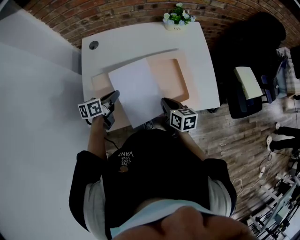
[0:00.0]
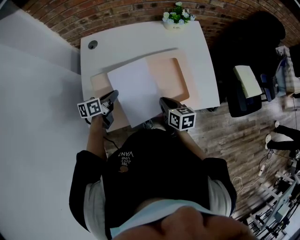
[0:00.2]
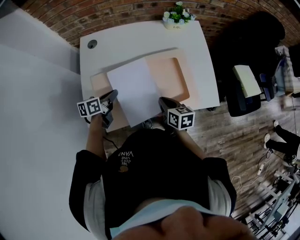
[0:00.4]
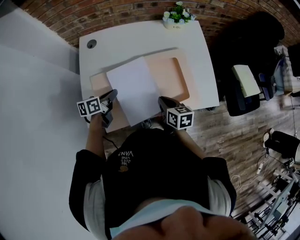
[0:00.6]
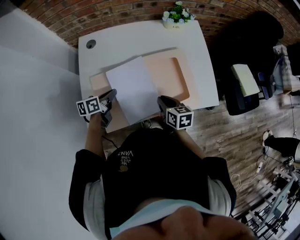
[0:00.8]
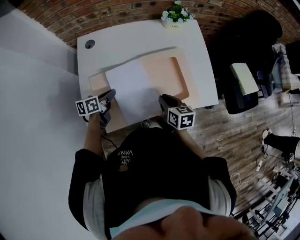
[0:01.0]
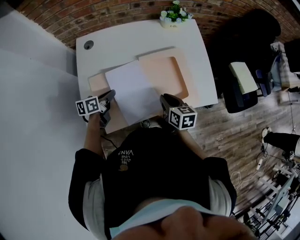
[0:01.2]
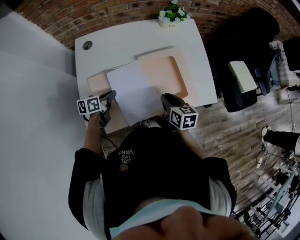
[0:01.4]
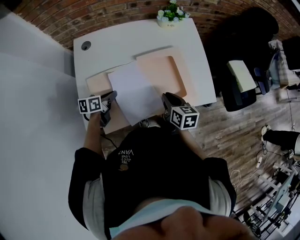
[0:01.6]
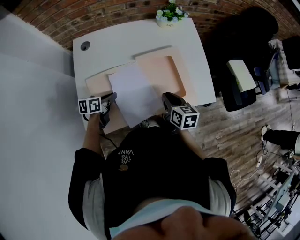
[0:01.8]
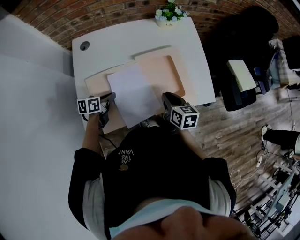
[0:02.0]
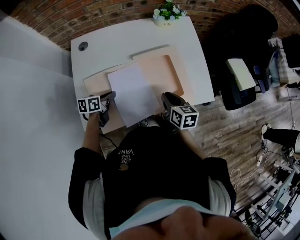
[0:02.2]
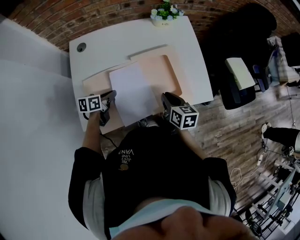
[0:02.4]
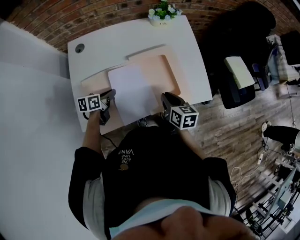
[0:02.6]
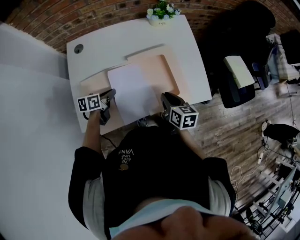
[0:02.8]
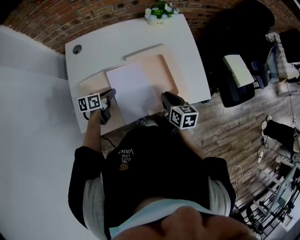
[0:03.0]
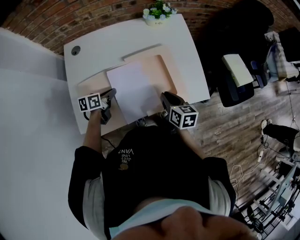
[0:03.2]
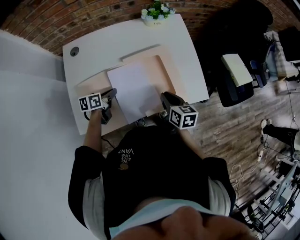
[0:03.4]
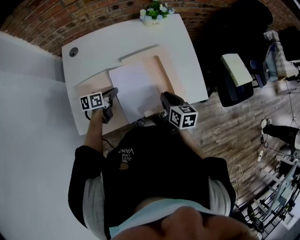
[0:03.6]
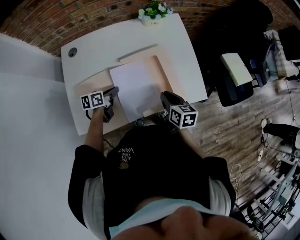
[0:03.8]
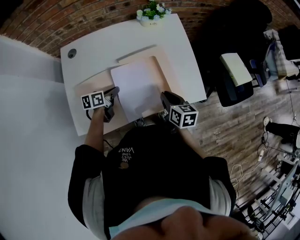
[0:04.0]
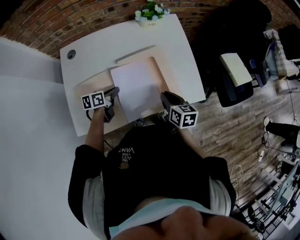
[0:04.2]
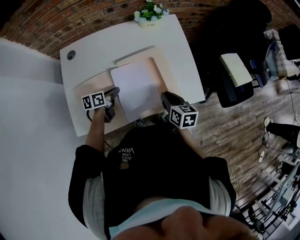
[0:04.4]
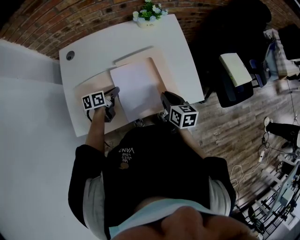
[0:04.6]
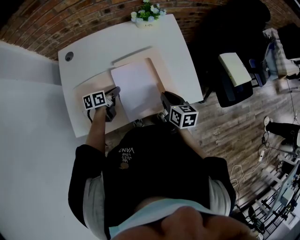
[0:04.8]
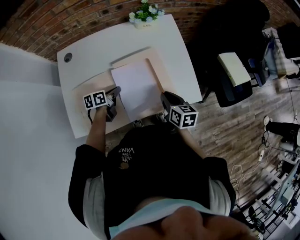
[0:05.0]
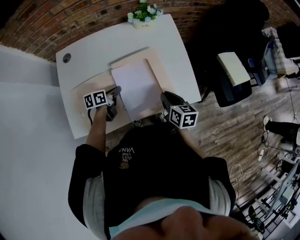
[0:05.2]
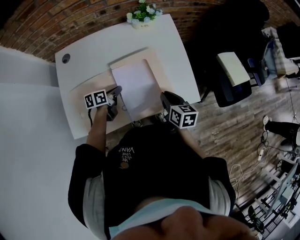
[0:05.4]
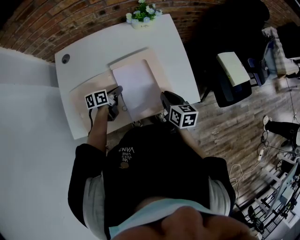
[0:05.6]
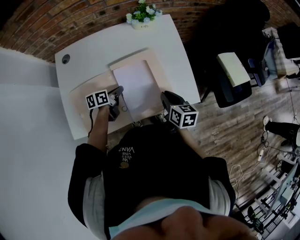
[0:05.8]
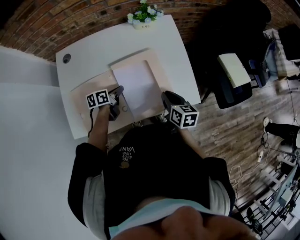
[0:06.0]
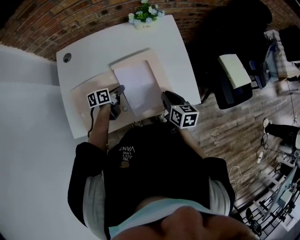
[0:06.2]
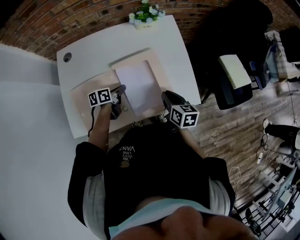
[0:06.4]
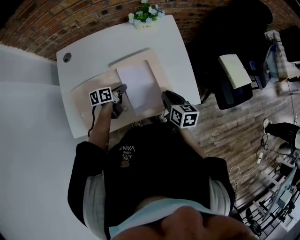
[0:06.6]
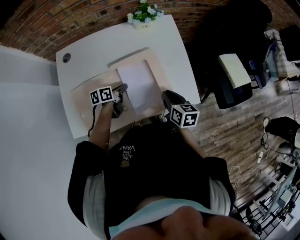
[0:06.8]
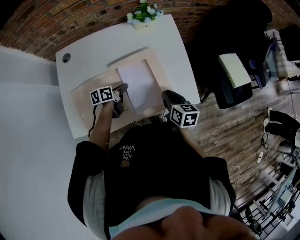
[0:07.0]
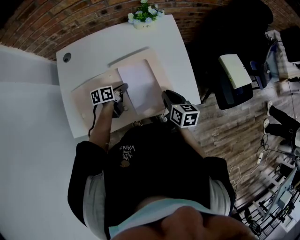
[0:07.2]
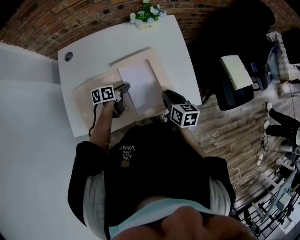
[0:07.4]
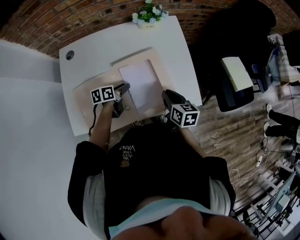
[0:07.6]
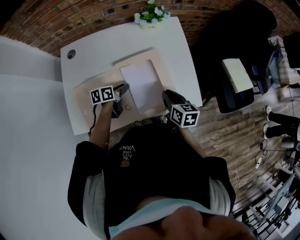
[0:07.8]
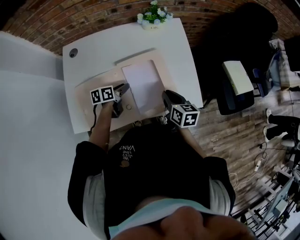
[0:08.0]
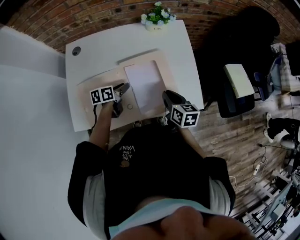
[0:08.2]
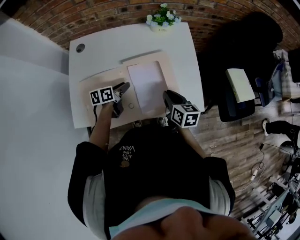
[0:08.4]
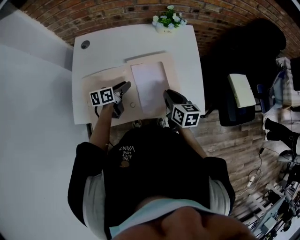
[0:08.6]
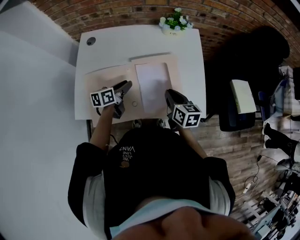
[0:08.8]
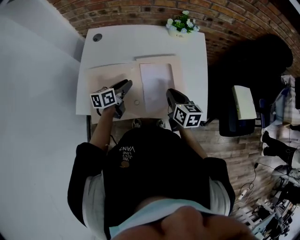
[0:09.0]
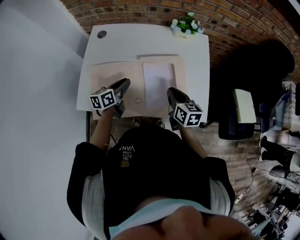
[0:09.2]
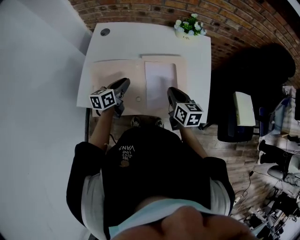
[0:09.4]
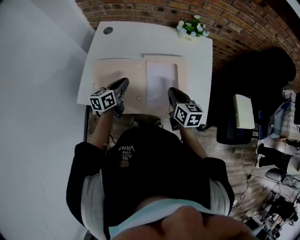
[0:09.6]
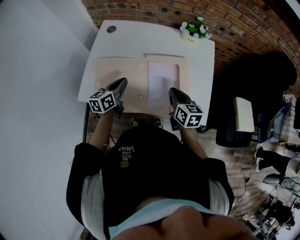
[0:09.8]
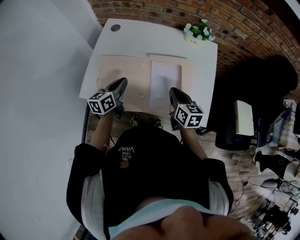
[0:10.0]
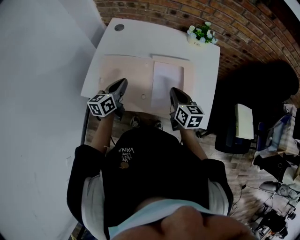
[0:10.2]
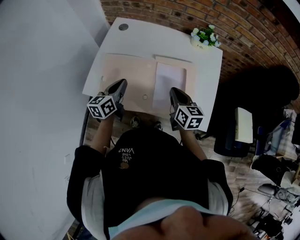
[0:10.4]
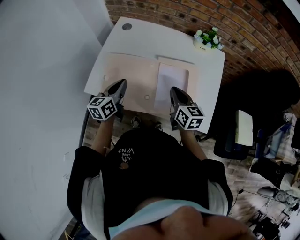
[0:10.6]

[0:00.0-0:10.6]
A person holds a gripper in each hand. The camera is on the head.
0:00.0 to 0:01.6: The left gripper moves downward, approximately 5 cm.
0:01.6 to 0:03.0: The grippers make only small movements.
0:03.0 to 0:04.6: The right gripper ends up roughly 5 cm from where it was; the left gripper shifts about 5 cm to the right.
0:04.6 to 0:06.0: The left gripper shifts by approximately 5 cm.
0:06.0 to 0:07.6: The left gripper opens.
0:07.6 to 0:09.0: The right gripper heads to the left, covering roughly 5 cm; the left gripper heads upward and to the left, covering some 10 cm, and changes its angle by approximately 20 degrees.
0:09.0 to 0:10.6: The right gripper goes about 5 cm to the left. The left gripper travels to the left, backward and upward by approximately 15 cm, rotates about 30 degrees, and closes its fingers.

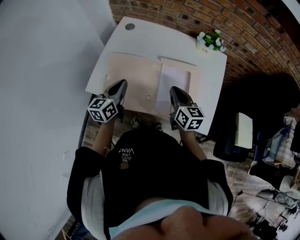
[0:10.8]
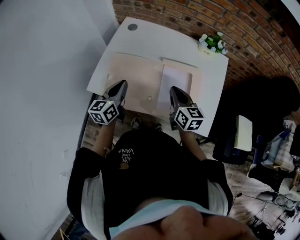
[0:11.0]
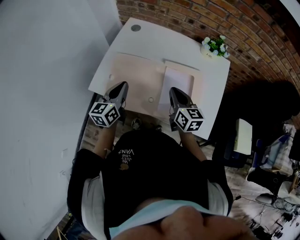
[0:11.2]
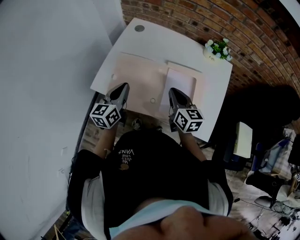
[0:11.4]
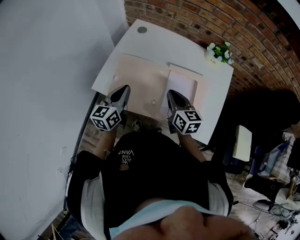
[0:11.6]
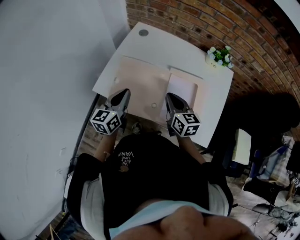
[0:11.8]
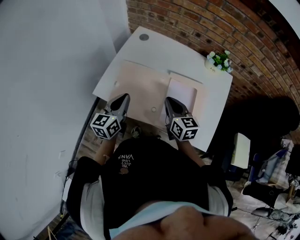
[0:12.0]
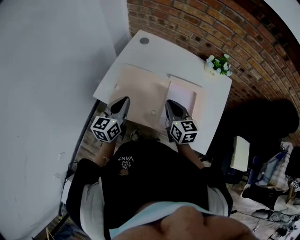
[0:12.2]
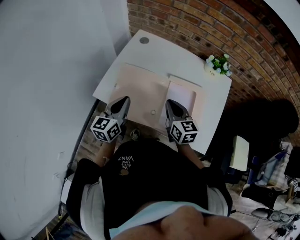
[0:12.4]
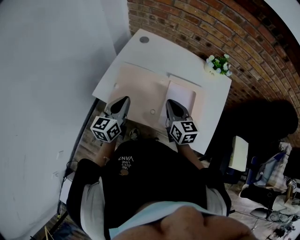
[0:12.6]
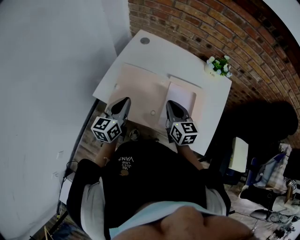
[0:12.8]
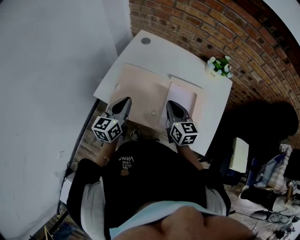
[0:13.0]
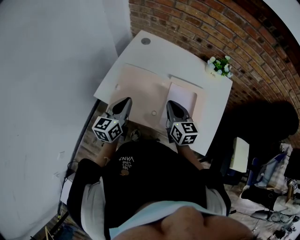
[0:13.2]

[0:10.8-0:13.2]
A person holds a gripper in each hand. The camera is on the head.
0:10.8 to 0:12.0: The right gripper shifts approximately 5 cm to the left.
0:12.0 to 0:13.2: The two grippers keep their place.

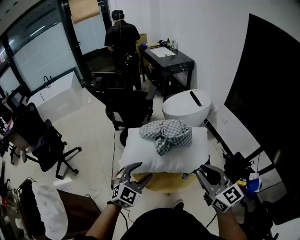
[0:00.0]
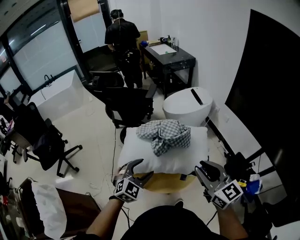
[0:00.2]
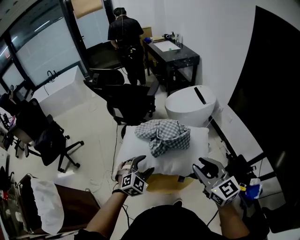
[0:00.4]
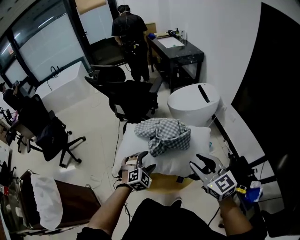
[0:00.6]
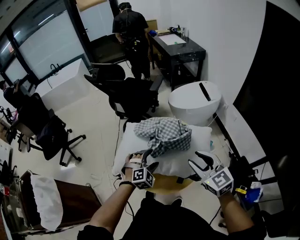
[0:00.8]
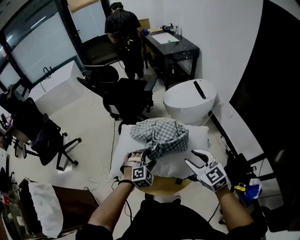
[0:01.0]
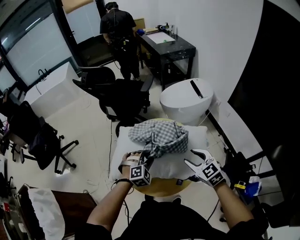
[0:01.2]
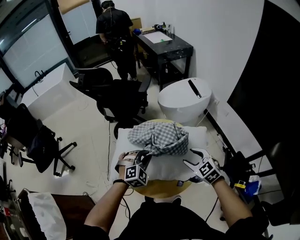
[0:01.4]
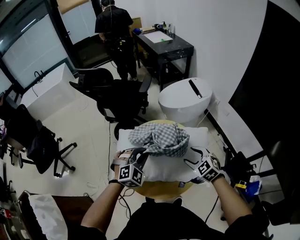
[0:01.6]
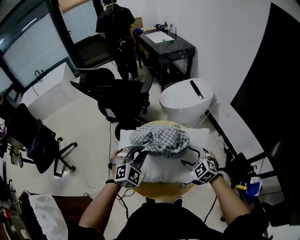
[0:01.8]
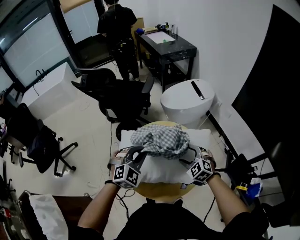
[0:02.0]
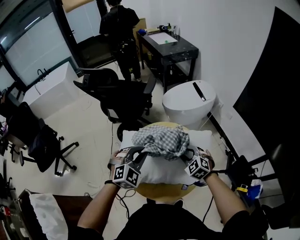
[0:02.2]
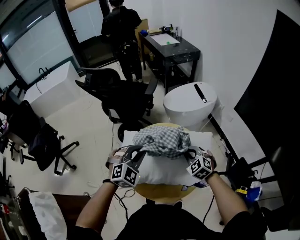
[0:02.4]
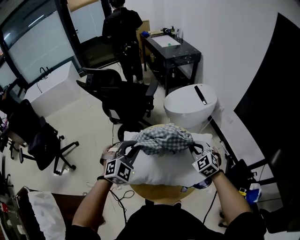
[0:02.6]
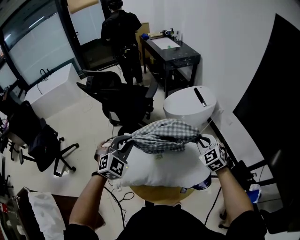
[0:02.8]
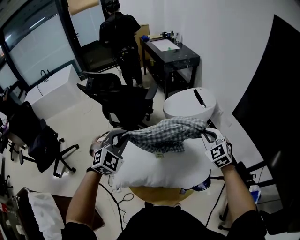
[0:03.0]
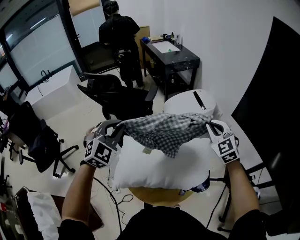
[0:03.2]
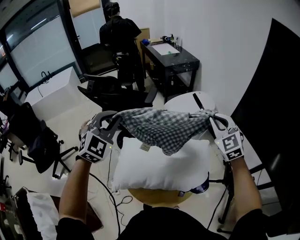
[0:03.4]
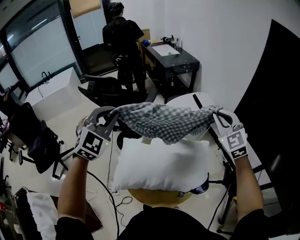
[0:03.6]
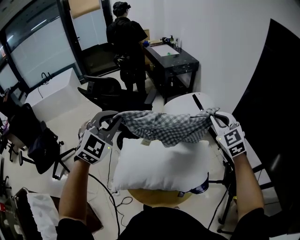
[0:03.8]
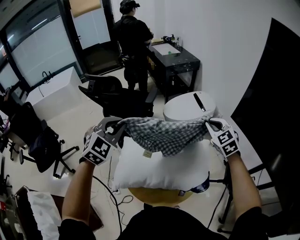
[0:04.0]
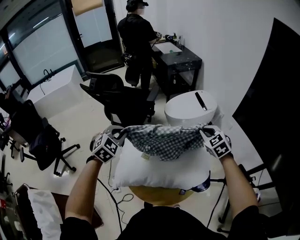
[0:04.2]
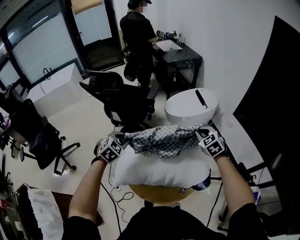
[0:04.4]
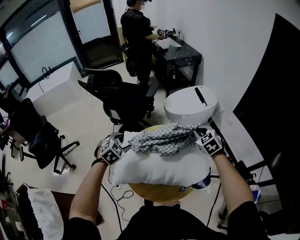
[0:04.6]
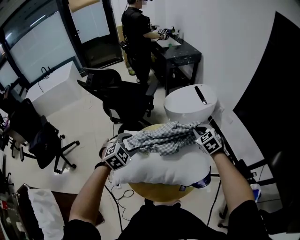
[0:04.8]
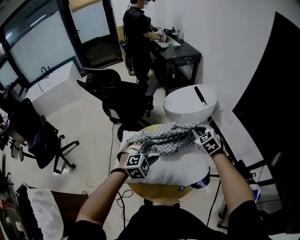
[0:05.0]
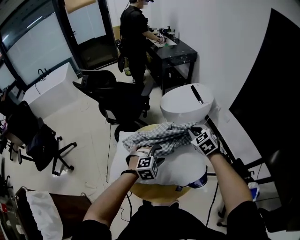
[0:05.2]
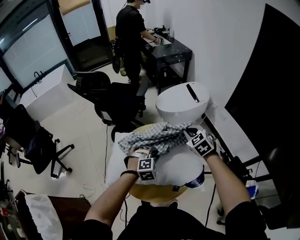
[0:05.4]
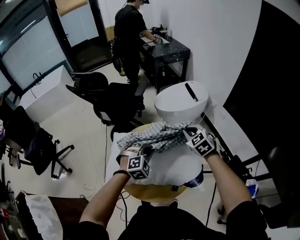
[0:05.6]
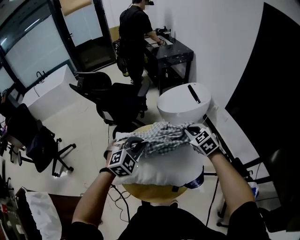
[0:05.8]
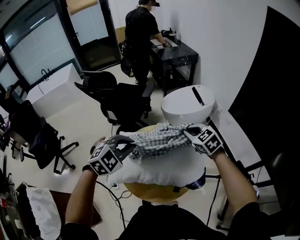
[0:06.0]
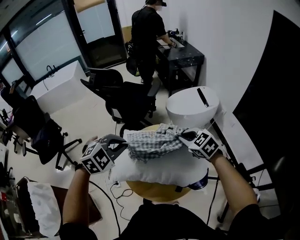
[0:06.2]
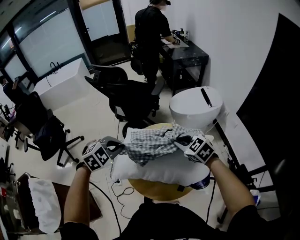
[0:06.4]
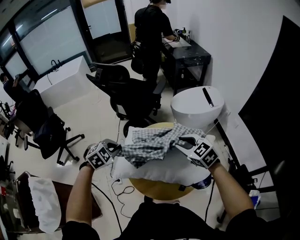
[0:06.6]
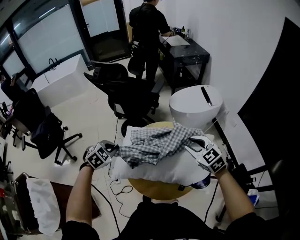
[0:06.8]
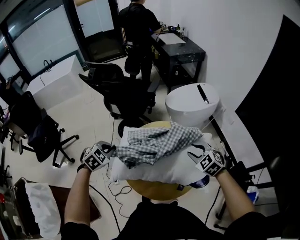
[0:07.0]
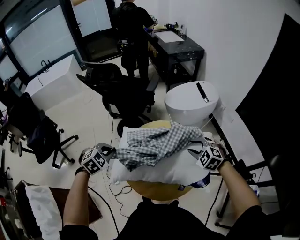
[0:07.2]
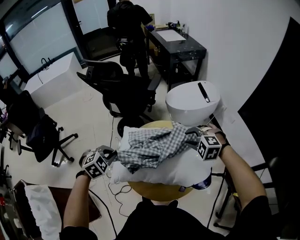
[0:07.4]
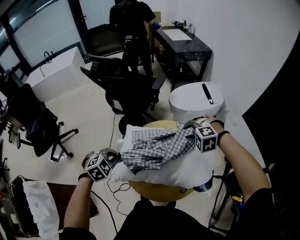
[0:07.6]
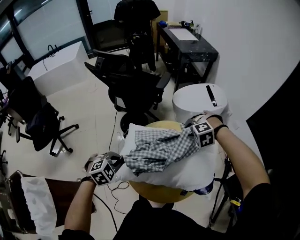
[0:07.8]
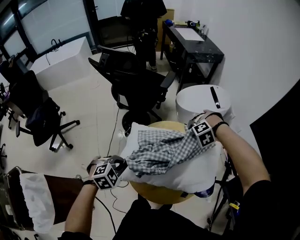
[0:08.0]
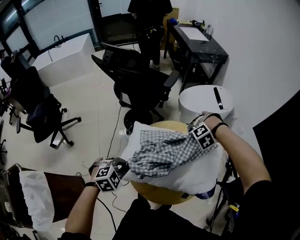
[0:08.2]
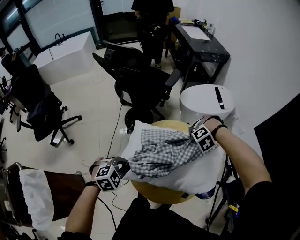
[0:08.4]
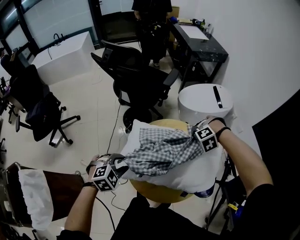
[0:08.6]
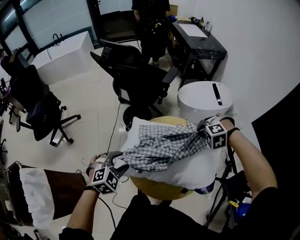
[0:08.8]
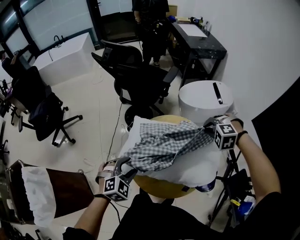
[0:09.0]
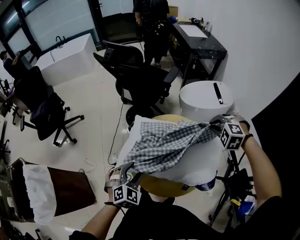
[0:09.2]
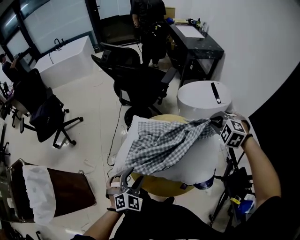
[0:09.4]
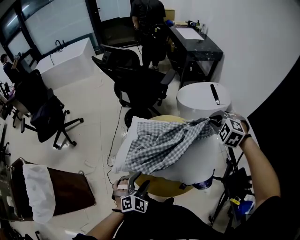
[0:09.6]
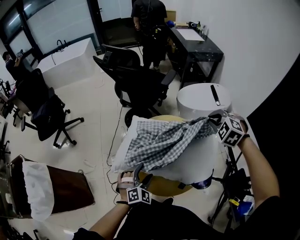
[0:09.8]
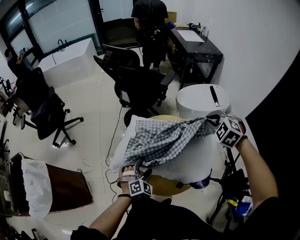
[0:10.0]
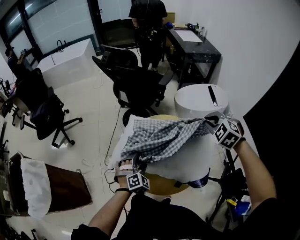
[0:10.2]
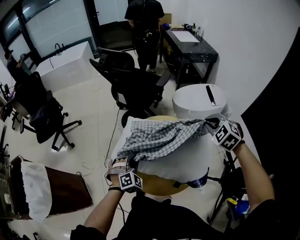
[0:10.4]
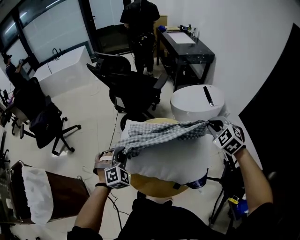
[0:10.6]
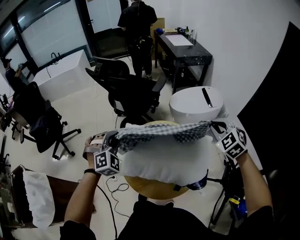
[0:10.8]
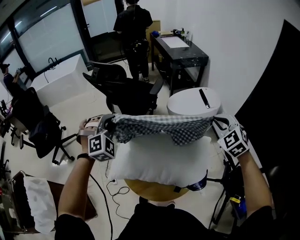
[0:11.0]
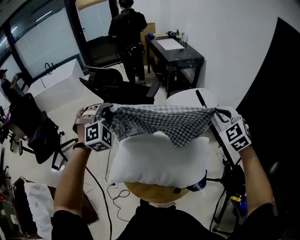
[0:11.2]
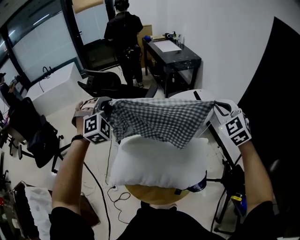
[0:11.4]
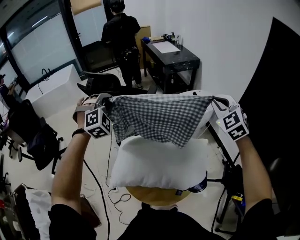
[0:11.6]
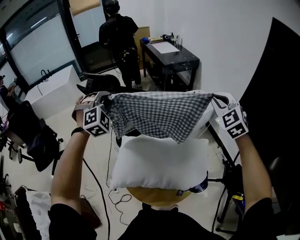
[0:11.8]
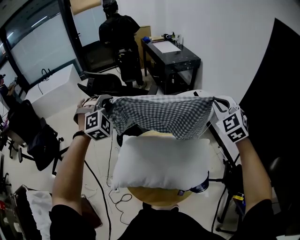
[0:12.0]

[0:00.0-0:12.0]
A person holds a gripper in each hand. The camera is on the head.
0:00.0 to 0:01.6: The left gripper shifts approximately 20 cm forward and downward, changes its angle by about 20 degrees, and closes its fingers; the right gripper shifts about 30 cm downward and forward, tilts its fingers some 40 degrees downward, and opens.
0:01.6 to 0:03.0: The right gripper goes some 20 cm upward and forward, turns by roughly 20 degrees, and closes its fingers. Meanwhile the left gripper shifts roughly 20 cm upward, to the left and forward.
0:03.0 to 0:04.4: The right gripper reaches roughly 15 cm upward, then returns. Meanwhile the left gripper is displaced downward by some 10 cm, and turns by about 30 degrees.
0:04.4 to 0:06.0: The left gripper goes roughly 15 cm to the right, upward and backward, swivels roughly 20 degrees, and opens, then closes once more.
0:06.0 to 0:07.6: The right gripper swings left and right, approximately 10 cm each way, with 2 reversals, twists about 60 degrees counterclockwise, seen from behind, and opens; the left gripper travels to the left and downward by some 20 cm, and swivels approximately 20 degrees.
0:07.6 to 0:09.0: The left gripper changes place by approximately 10 cm, and opens its fingers. Meanwhile the right gripper moves approximately 10 cm downward and comes back, and closes.
0:09.0 to 0:10.4: The left gripper goes approximately 5 cm to the right, travels backward and back again, some 10 cm each way, and closes its fingers, while the right gripper travels upward by about 10 cm, and swivels about 40 degrees.
0:10.4 to 0:12.0: The left gripper shifts approximately 35 cm upward and forward, and rotates roughly 30 degrees; the right gripper shifts some 15 cm upward, and rotates some 30 degrees.
